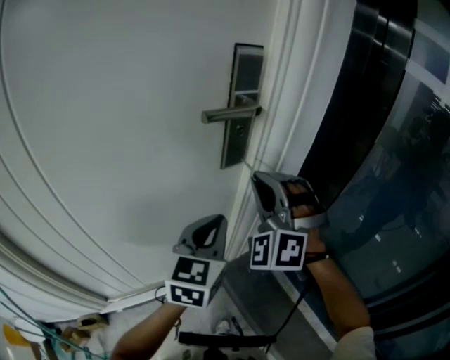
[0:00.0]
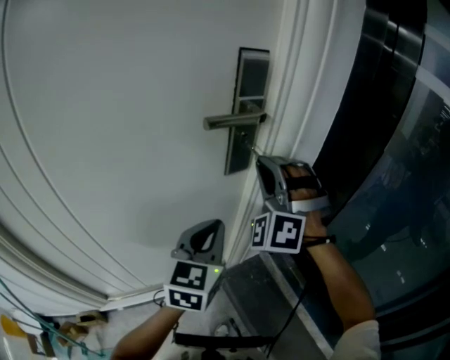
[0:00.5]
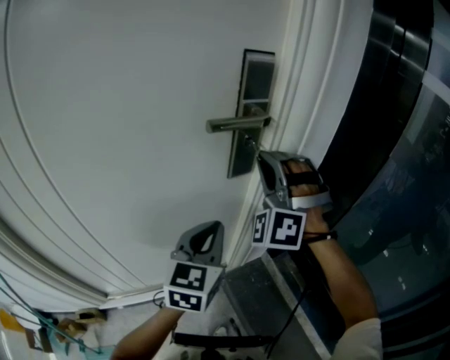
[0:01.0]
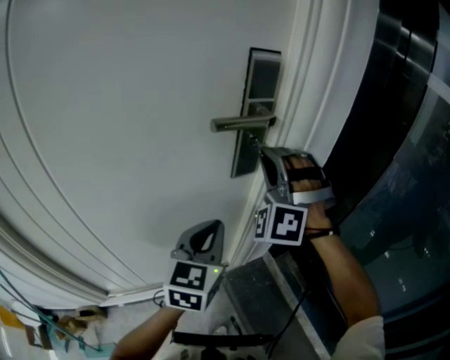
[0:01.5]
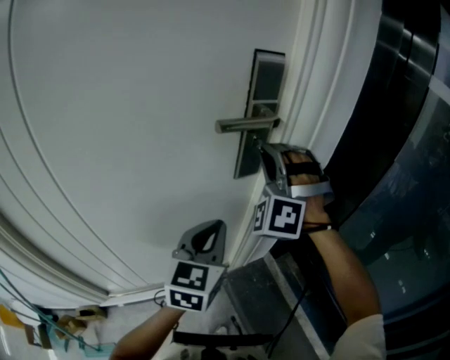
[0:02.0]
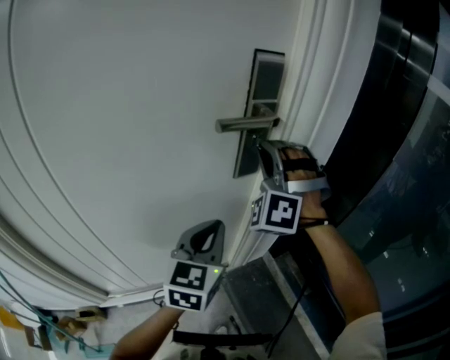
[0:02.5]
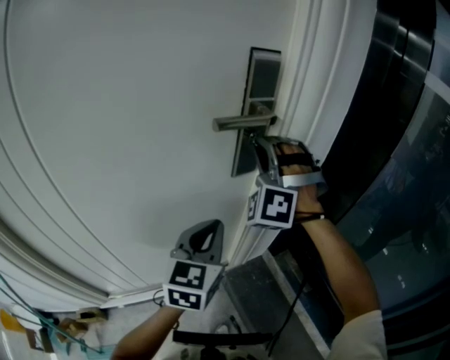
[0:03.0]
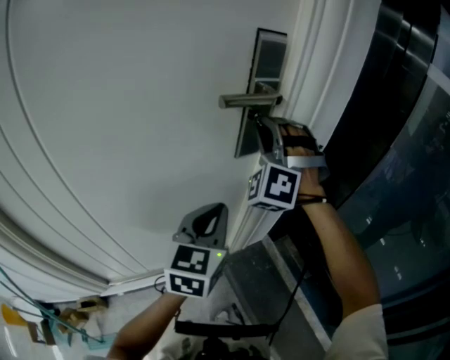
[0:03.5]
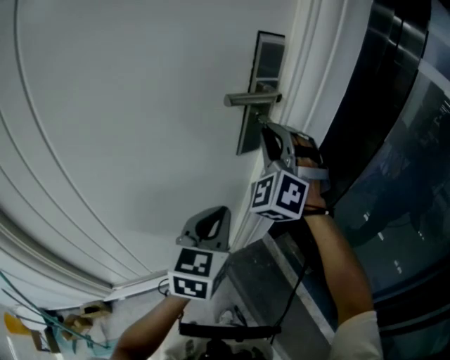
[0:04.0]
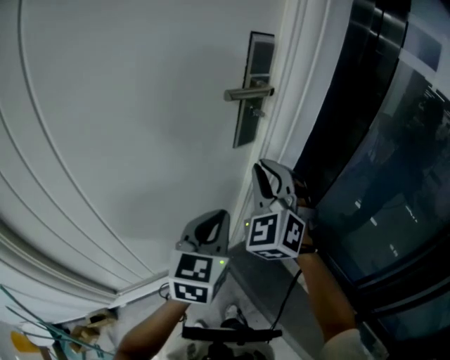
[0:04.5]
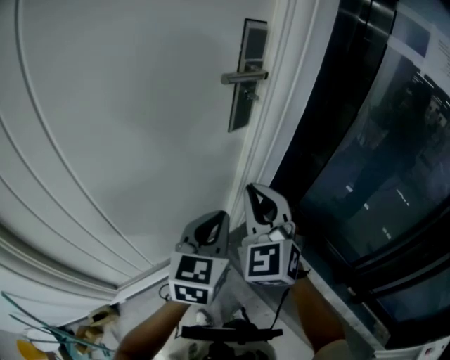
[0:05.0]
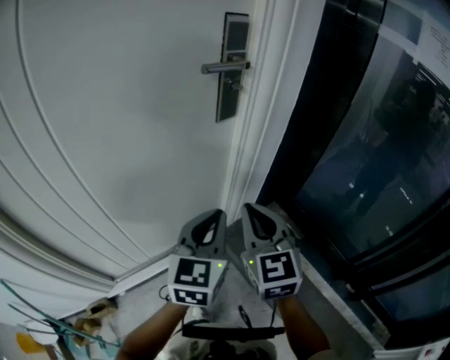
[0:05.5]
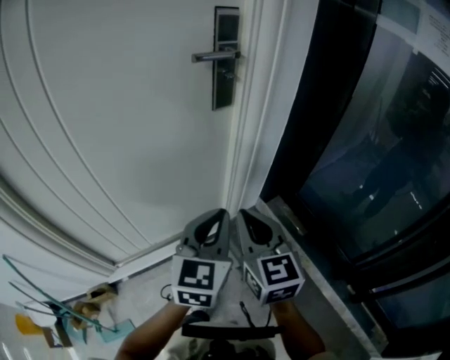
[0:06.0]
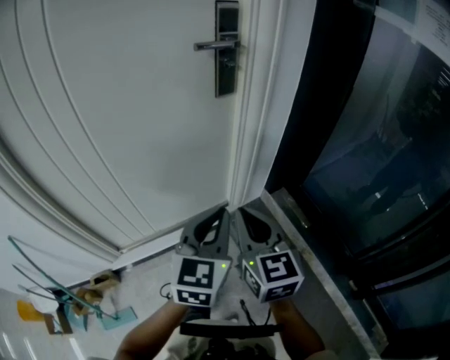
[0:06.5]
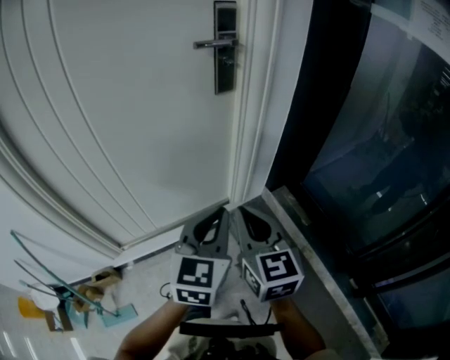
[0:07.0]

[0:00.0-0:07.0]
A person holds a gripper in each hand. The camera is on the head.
0:00.0 to 0:02.0: The right gripper moves forward, approximately 10 cm.
0:02.0 to 0:03.5: The grippers make only small movements.
0:03.5 to 0:05.0: The left gripper heads backward, covering about 10 cm. The right gripper goes some 20 cm backward, and rotates around the line of its fingers by some 50 degrees, clockwise from behind.
0:05.0 to 0:07.0: The left gripper travels backward and to the right by roughly 15 cm; the right gripper heads backward, to the right and downward, covering some 20 cm, and twists approximately 40 degrees clockwise, seen from behind.

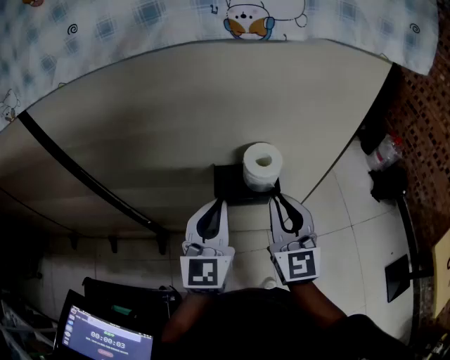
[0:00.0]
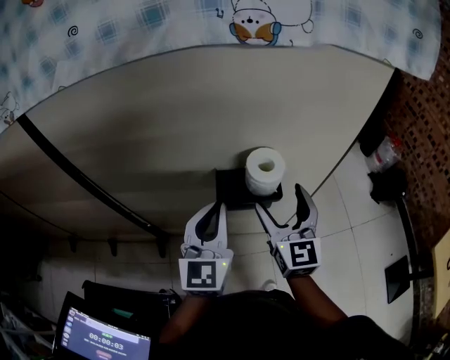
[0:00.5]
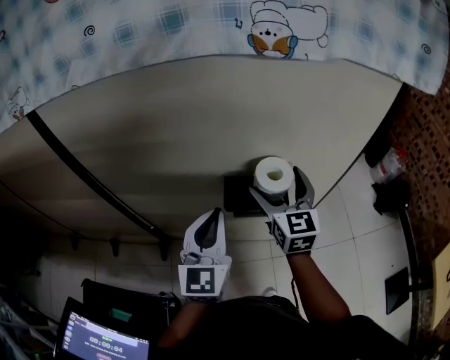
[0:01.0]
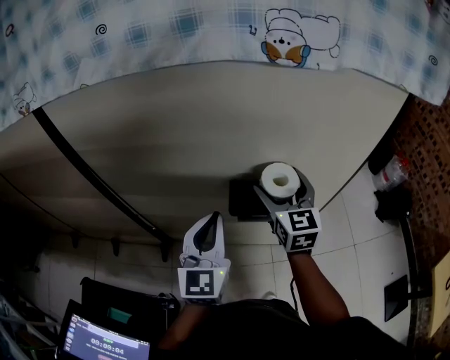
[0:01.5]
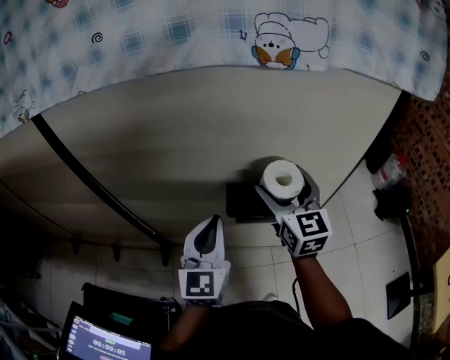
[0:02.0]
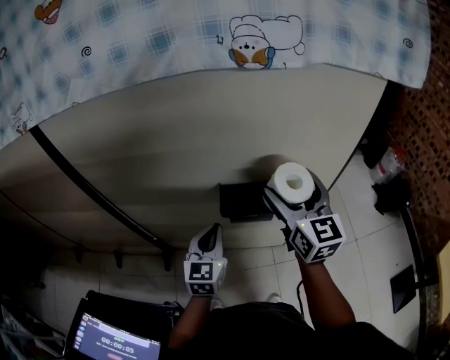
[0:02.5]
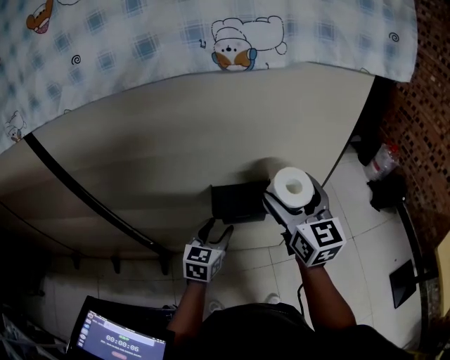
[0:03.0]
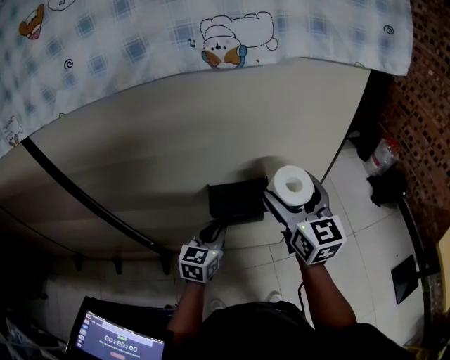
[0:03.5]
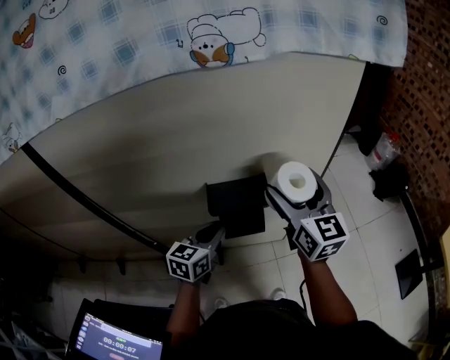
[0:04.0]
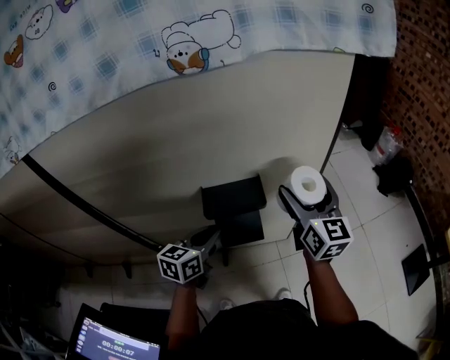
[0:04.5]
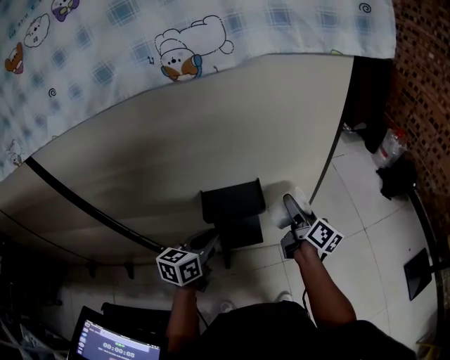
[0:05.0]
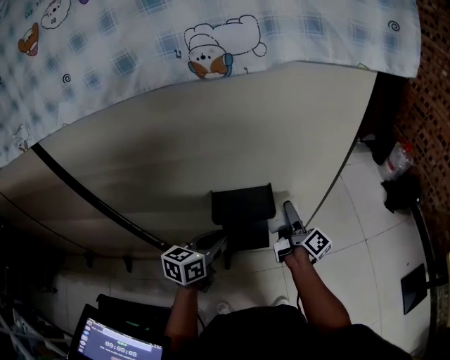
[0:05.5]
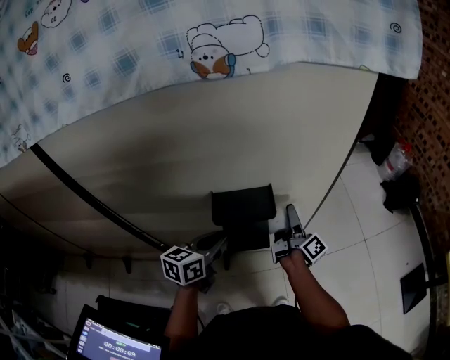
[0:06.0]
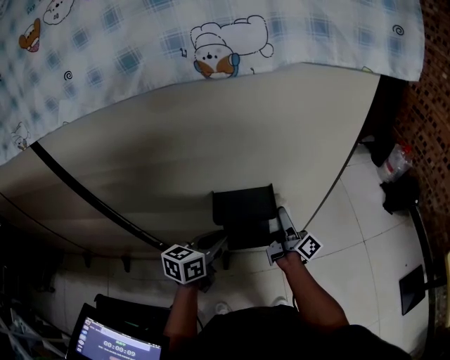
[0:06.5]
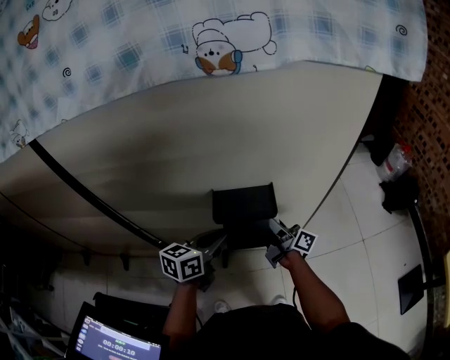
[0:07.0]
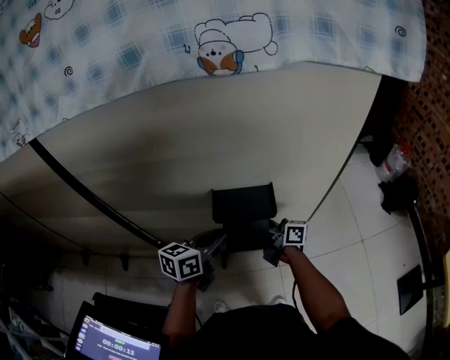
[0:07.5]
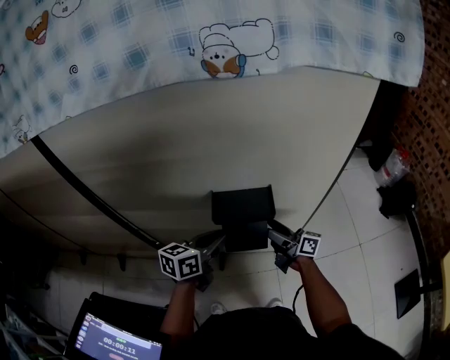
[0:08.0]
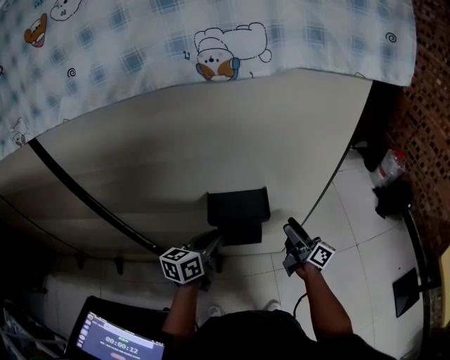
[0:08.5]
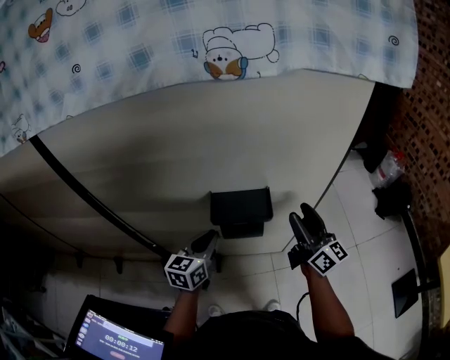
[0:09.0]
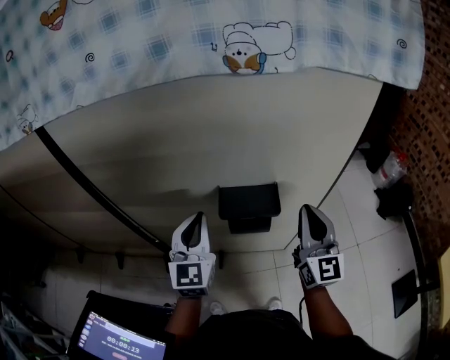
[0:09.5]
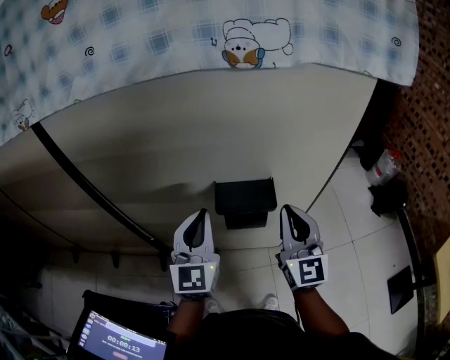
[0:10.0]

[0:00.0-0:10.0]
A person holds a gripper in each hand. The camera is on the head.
0:00.0 to 0:02.0: The right gripper is displaced forward by approximately 10 cm, and opens up.
0:02.0 to 0:04.0: The left gripper is displaced downward and to the right by about 15 cm, swivels some 40 degrees, and opens and closes again. The right gripper moves to the right, approximately 10 cm.
0:04.0 to 0:06.0: The right gripper shifts about 20 cm downward, and rolls clockwise, seen from behind, by about 70 degrees.
0:06.0 to 0:08.0: The right gripper changes its angle by about 40 degrees.
0:08.0 to 0:10.0: The left gripper goes roughly 15 cm upward, and turns by roughly 50 degrees; the right gripper travels upward by some 20 cm, twists some 70 degrees counterclockwise, seen from behind, and closes up.

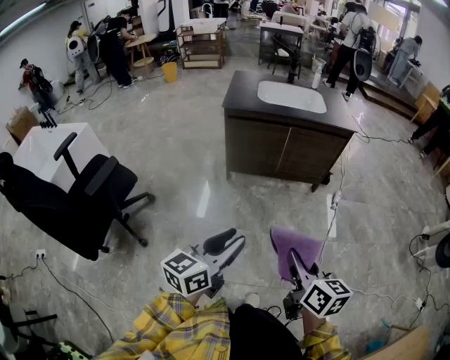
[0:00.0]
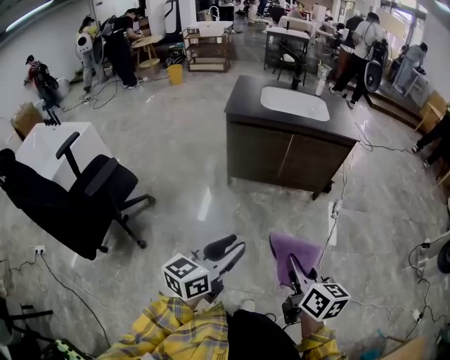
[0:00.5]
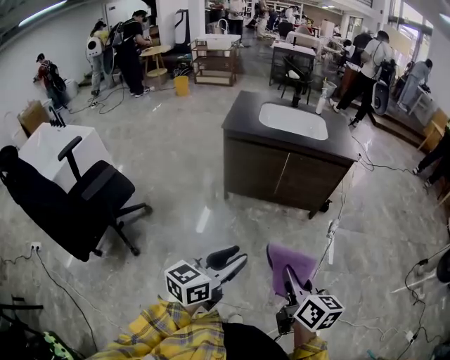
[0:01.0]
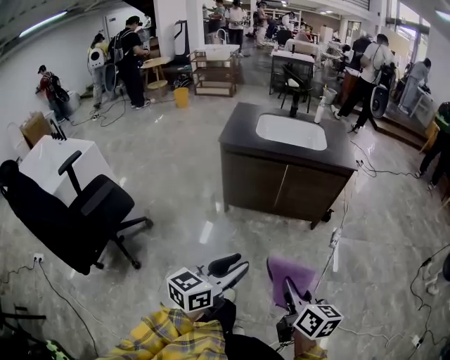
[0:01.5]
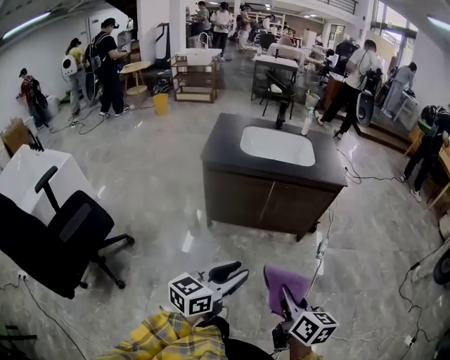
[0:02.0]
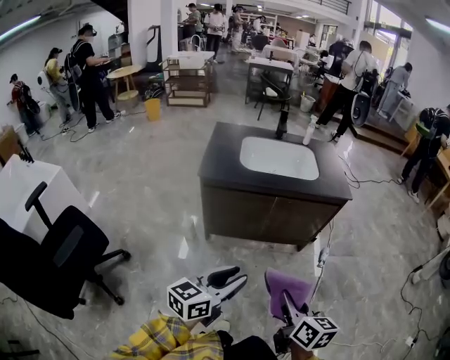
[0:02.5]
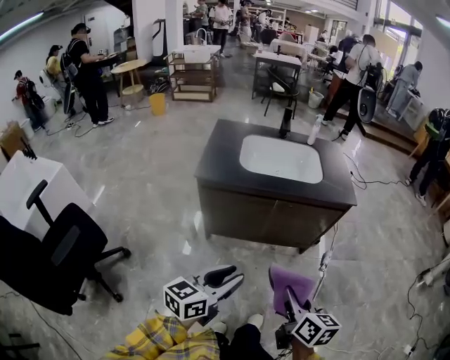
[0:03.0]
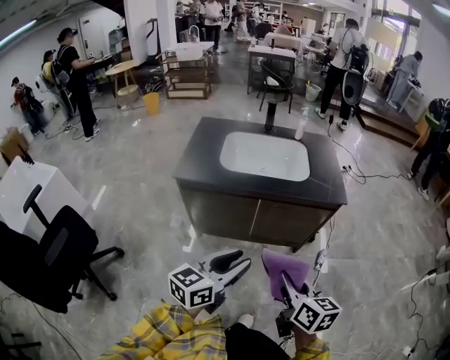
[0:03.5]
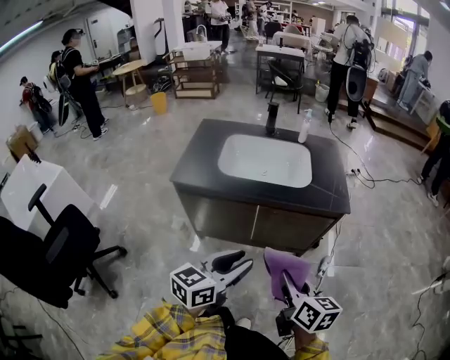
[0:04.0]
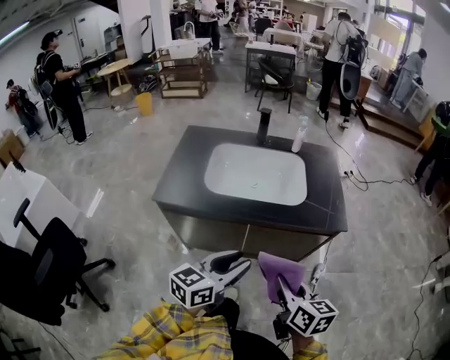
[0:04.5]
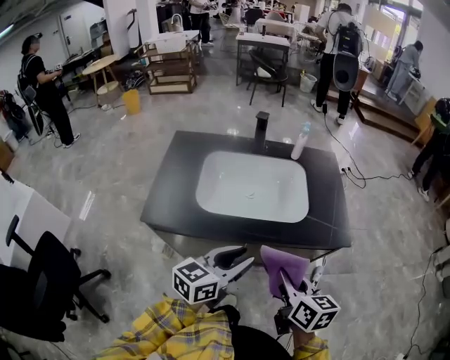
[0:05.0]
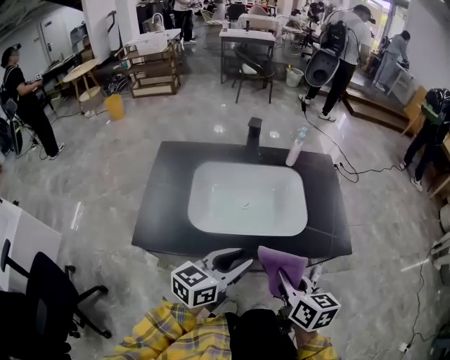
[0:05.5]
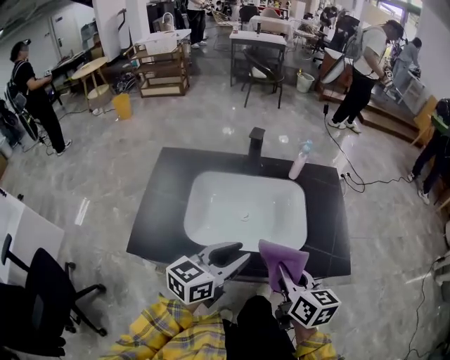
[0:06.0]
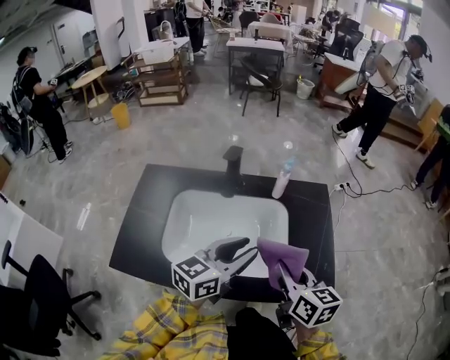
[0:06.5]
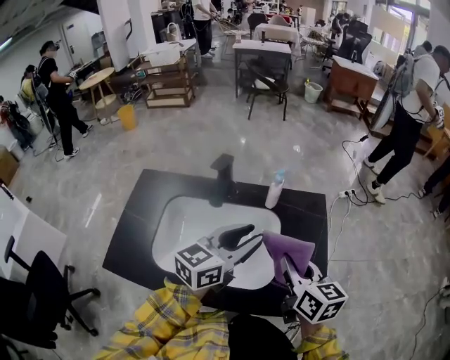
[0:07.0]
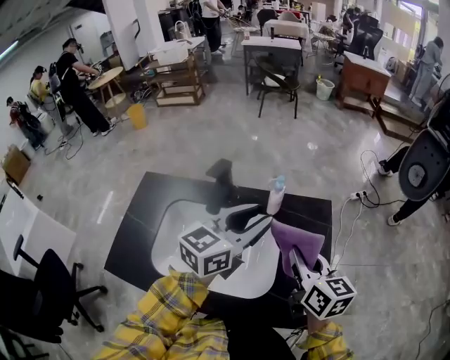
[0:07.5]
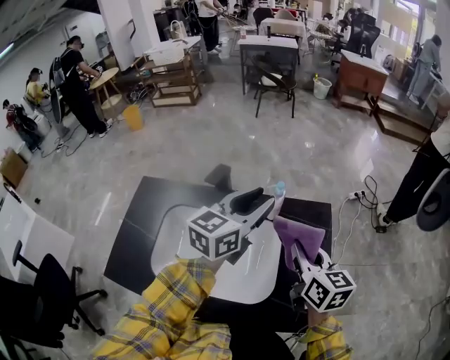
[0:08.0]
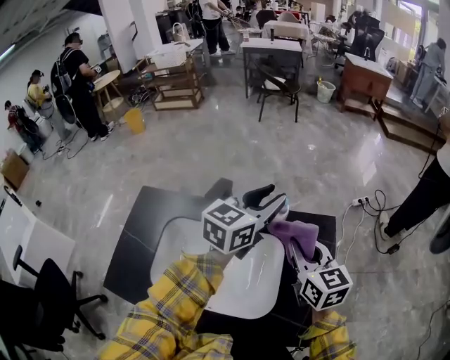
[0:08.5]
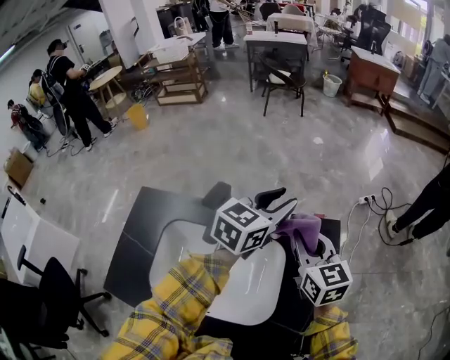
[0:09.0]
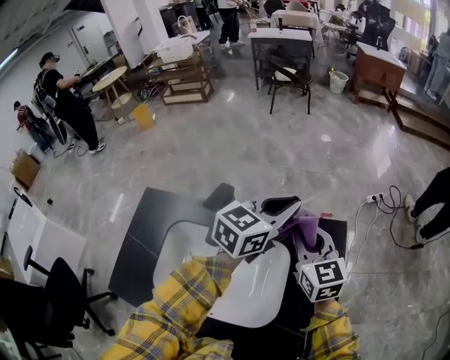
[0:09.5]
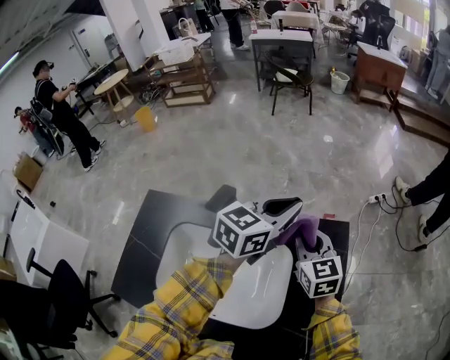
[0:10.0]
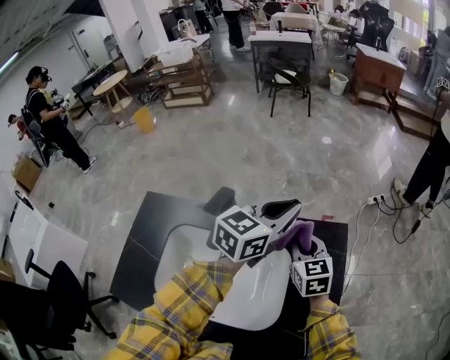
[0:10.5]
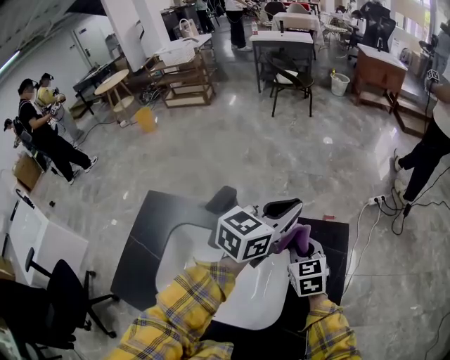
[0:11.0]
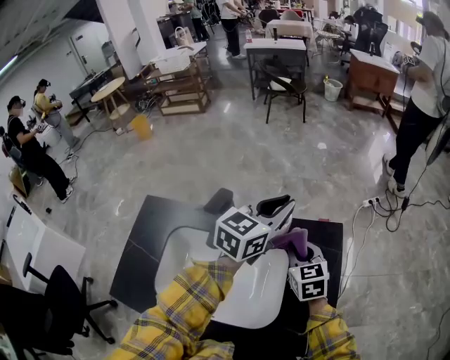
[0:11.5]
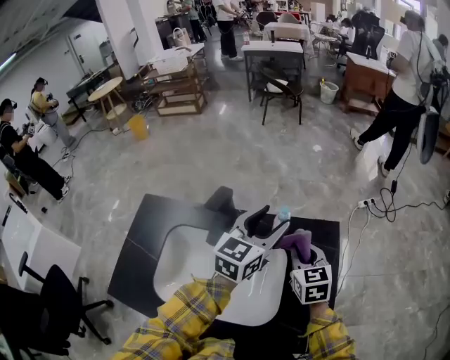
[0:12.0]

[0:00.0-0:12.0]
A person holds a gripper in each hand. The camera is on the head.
0:00.0 to 0:02.0: Both grippers move forward, about 20 cm.
0:02.0 to 0:04.0: The two grippers go about 30 cm forward.
0:04.0 to 0:06.0: The two grippers go some 40 cm forward.
0:06.0 to 0:08.0: Both grippers move forward and to the right, approximately 35 cm.
0:08.0 to 0:10.0: The two grippers go roughly 10 cm forward. The left gripper closes; the right gripper turns by roughly 20 degrees.
0:10.0 to 0:12.0: The right gripper moves about 5 cm; the left gripper moves about 5 cm, and opens.
